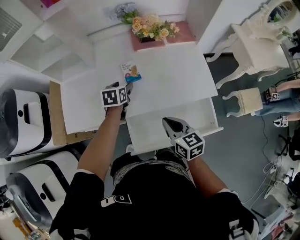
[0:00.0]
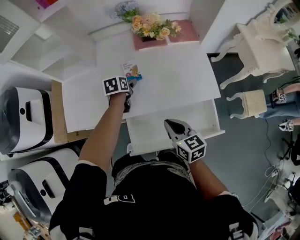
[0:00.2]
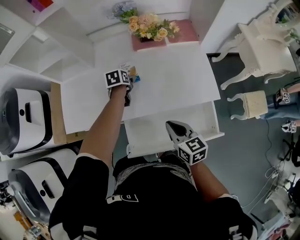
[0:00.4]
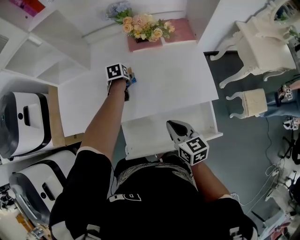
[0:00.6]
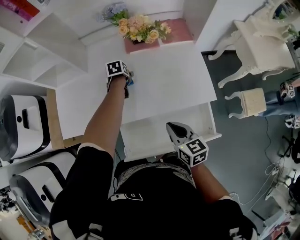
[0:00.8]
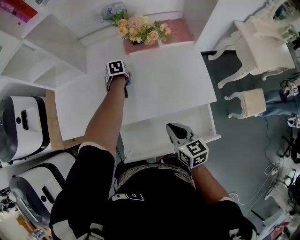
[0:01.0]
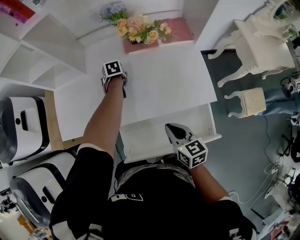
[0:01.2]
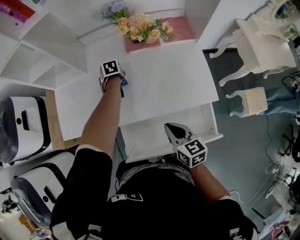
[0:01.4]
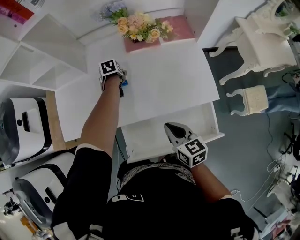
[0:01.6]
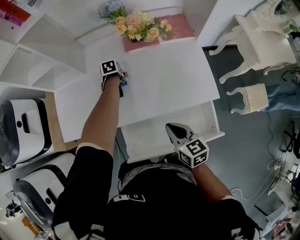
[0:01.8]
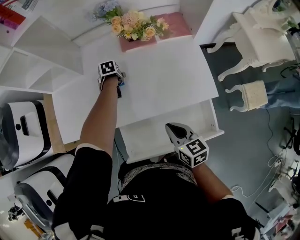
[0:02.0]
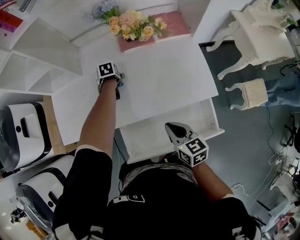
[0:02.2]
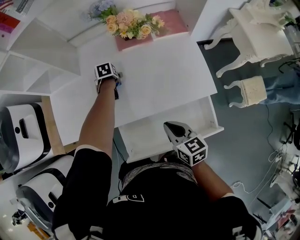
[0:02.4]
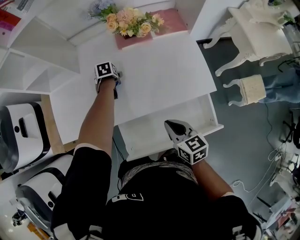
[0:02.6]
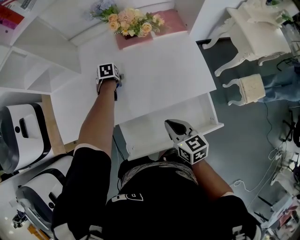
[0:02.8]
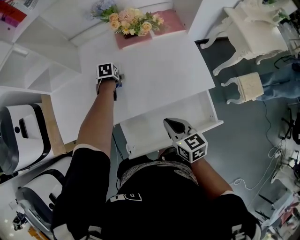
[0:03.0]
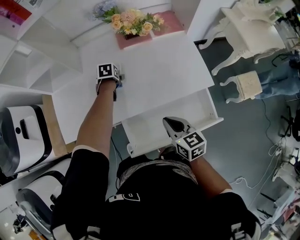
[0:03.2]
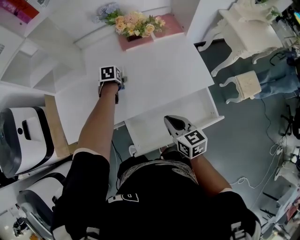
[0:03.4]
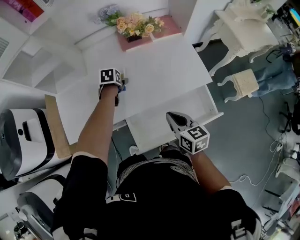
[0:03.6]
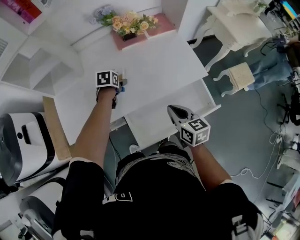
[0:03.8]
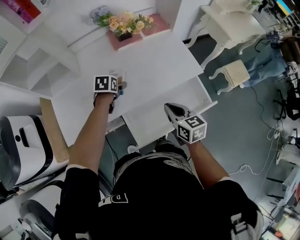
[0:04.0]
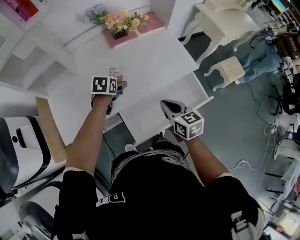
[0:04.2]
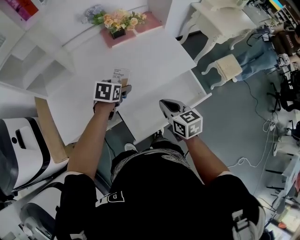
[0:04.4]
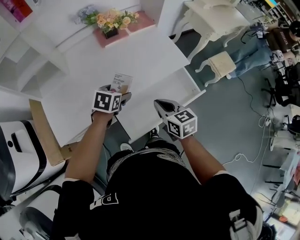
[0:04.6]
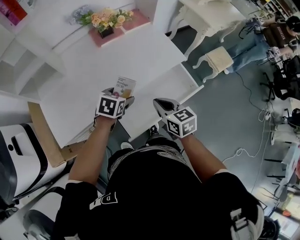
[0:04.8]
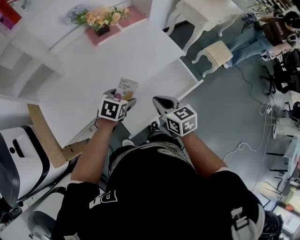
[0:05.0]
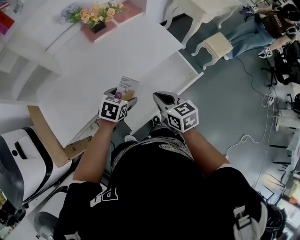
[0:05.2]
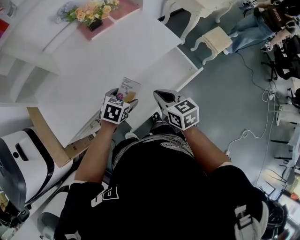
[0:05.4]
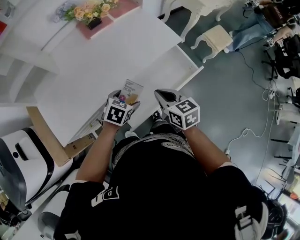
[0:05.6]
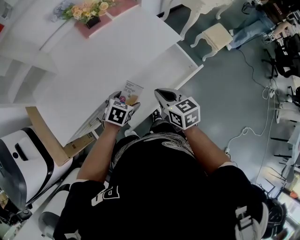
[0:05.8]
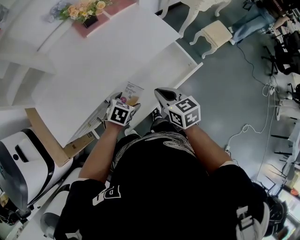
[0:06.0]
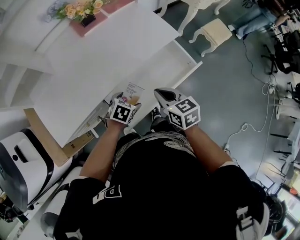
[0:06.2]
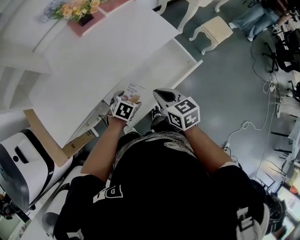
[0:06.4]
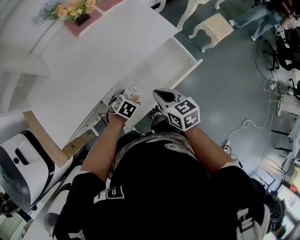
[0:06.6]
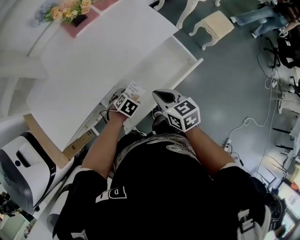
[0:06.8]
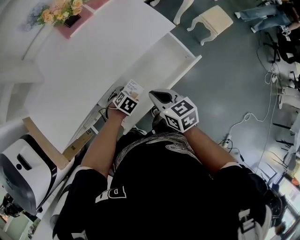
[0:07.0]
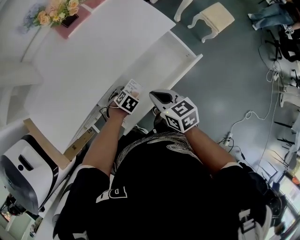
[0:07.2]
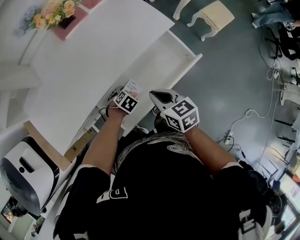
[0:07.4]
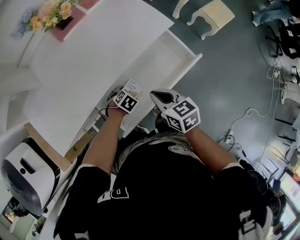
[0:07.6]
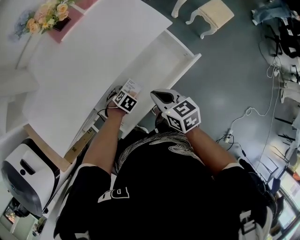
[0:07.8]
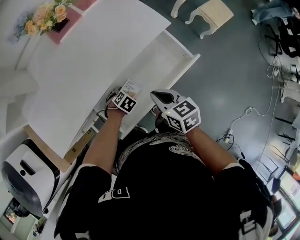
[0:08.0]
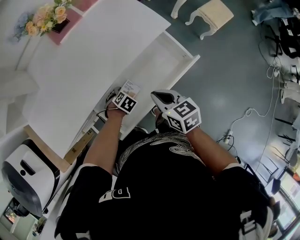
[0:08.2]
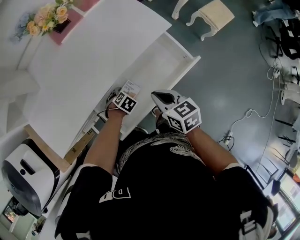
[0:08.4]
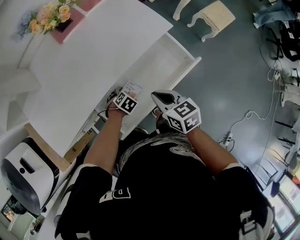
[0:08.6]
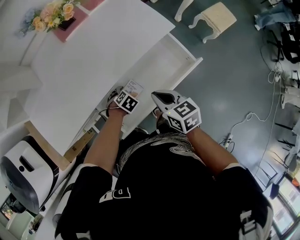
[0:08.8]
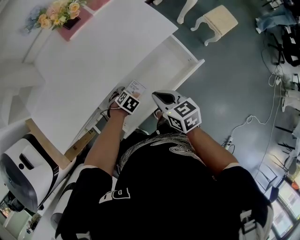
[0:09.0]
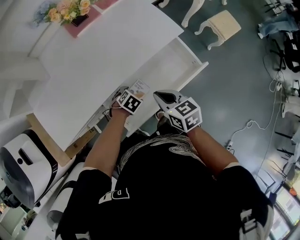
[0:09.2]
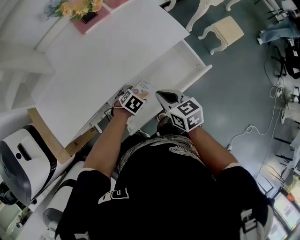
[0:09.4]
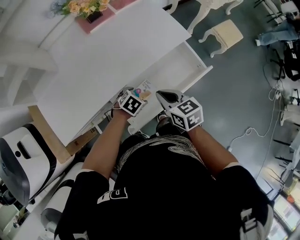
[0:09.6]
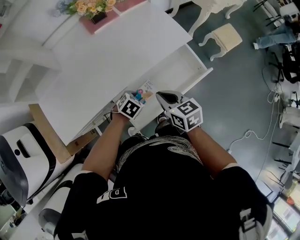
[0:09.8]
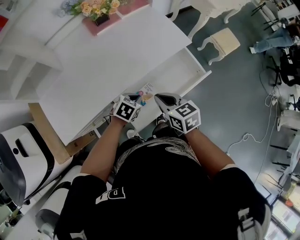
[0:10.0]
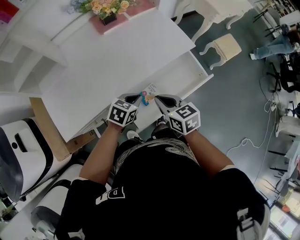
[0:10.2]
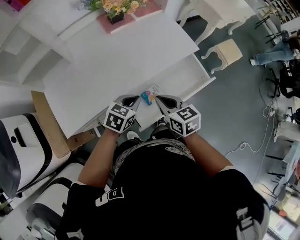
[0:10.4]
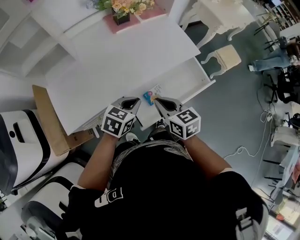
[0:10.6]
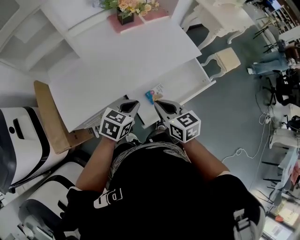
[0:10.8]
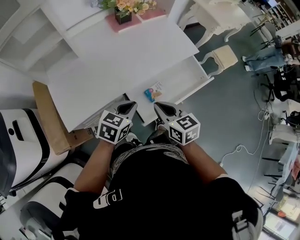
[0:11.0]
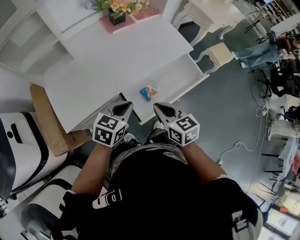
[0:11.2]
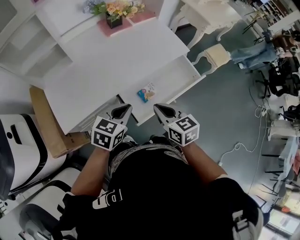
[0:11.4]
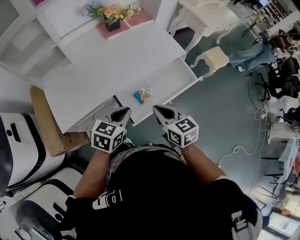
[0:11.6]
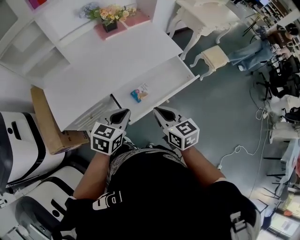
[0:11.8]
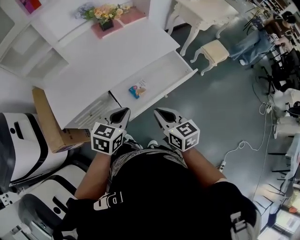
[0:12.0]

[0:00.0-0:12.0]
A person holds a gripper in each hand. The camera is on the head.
0:00.0 to 0:01.6: The right gripper moves about 5 cm. The left gripper goes roughly 15 cm forward and downward, and rotates roughly 30 degrees.
0:01.6 to 0:03.0: There are only small adjustments of the grippers.
0:03.0 to 0:04.4: The left gripper travels backward, upward and to the right by some 20 cm, and rotates about 40 degrees. The right gripper travels backward by about 5 cm.
0:04.4 to 0:06.0: The left gripper goes about 20 cm backward, to the right and downward, and swivels approximately 20 degrees. Meanwhile the right gripper shifts by roughly 5 cm.
0:06.0 to 0:07.6: The left gripper moves downward, roughly 15 cm, and rotates approximately 30 degrees. The right gripper shifts some 5 cm downward.
0:07.6 to 0:09.0: The grippers make only small movements.
0:09.0 to 0:10.4: The right gripper shifts by about 15 cm; the left gripper is displaced upward by some 25 cm, tips its fingers upward by approximately 40 degrees, and closes.
0:10.4 to 0:12.0: The right gripper is displaced backward and to the right by about 15 cm; the left gripper moves backward and upward, roughly 20 cm.

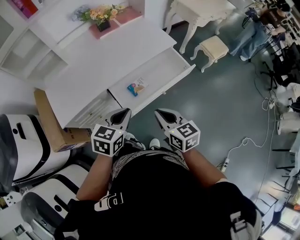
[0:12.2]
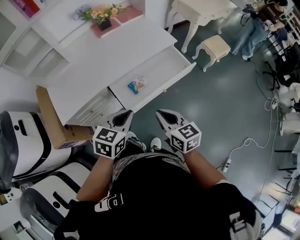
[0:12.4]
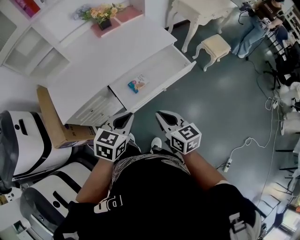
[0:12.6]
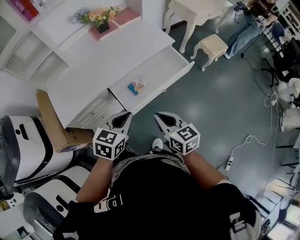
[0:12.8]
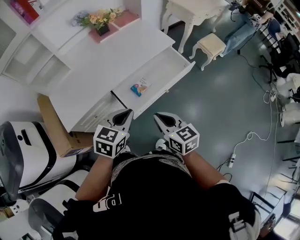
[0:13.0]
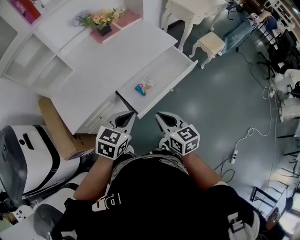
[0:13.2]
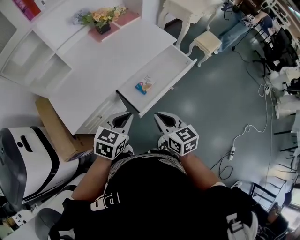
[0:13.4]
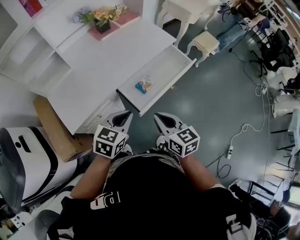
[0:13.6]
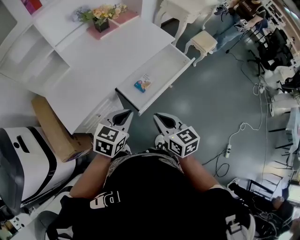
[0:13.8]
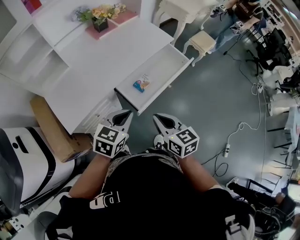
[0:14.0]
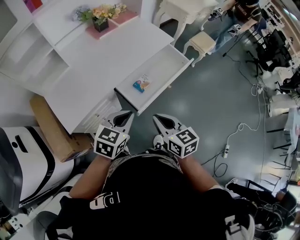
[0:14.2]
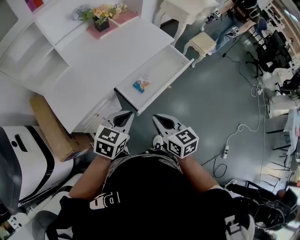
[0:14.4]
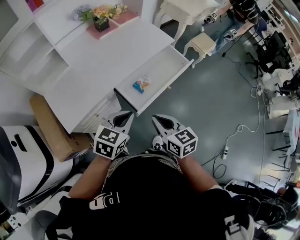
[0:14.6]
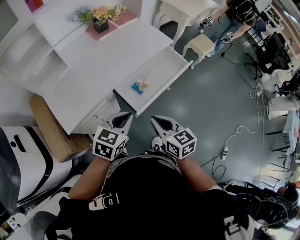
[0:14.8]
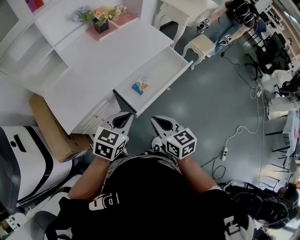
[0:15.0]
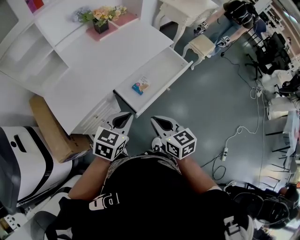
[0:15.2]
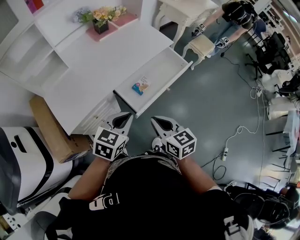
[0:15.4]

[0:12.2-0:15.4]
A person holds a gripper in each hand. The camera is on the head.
0:12.2 to 0:13.8: The left gripper travels to the left by approximately 10 cm; the right gripper shifts roughly 10 cm to the left and backward.
0:13.8 to 0:15.4: The grippers move only a little.

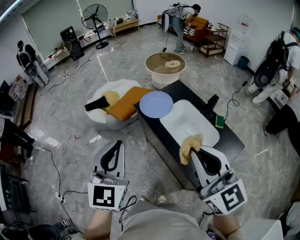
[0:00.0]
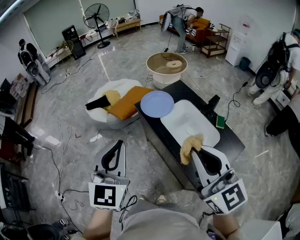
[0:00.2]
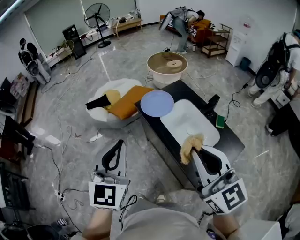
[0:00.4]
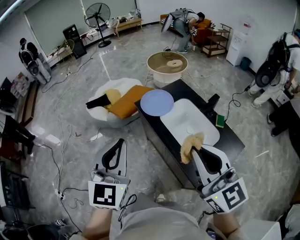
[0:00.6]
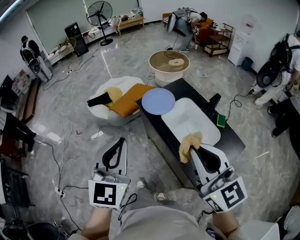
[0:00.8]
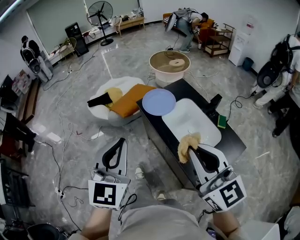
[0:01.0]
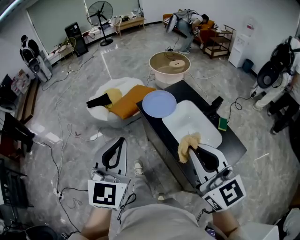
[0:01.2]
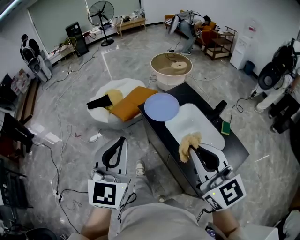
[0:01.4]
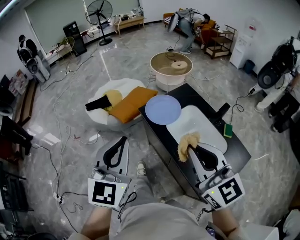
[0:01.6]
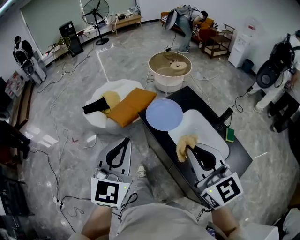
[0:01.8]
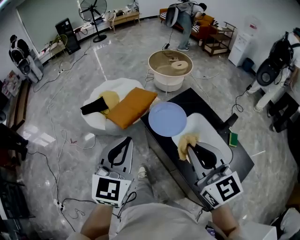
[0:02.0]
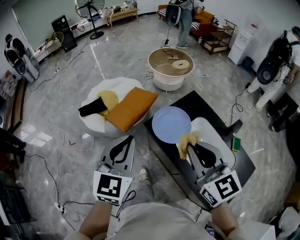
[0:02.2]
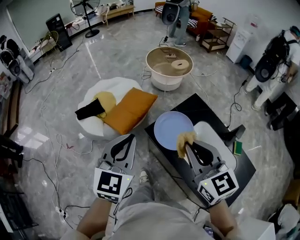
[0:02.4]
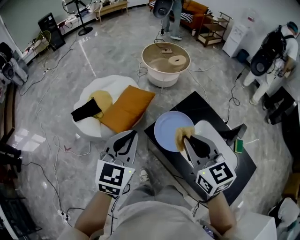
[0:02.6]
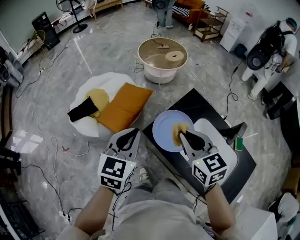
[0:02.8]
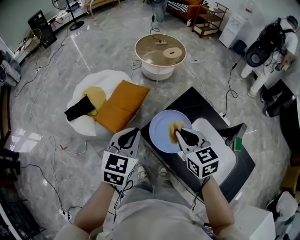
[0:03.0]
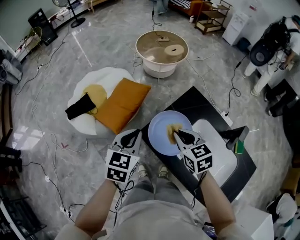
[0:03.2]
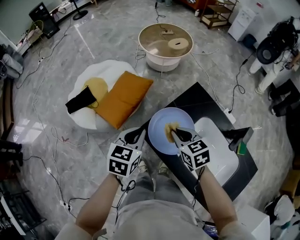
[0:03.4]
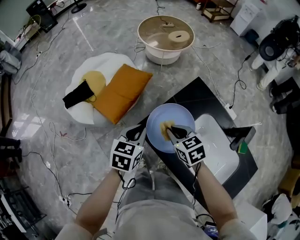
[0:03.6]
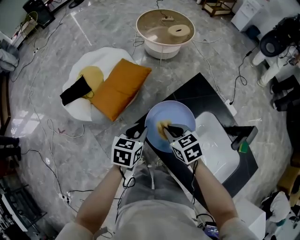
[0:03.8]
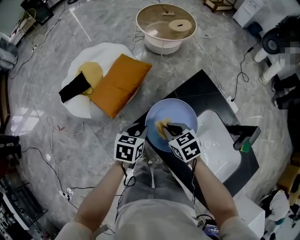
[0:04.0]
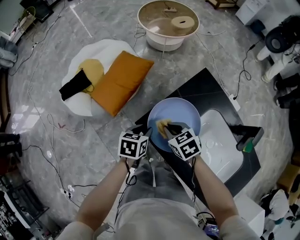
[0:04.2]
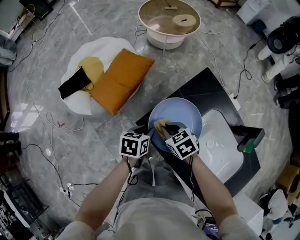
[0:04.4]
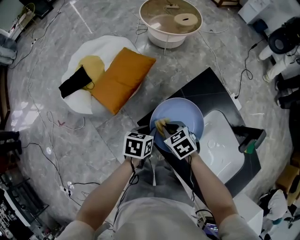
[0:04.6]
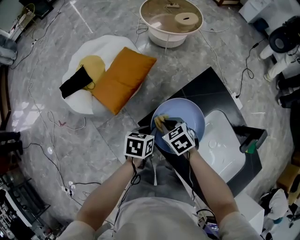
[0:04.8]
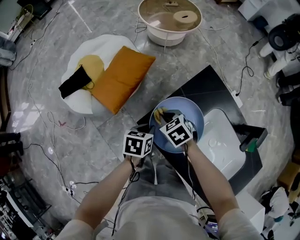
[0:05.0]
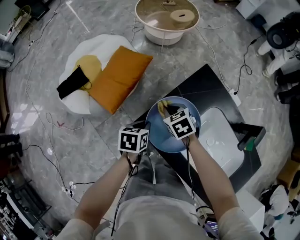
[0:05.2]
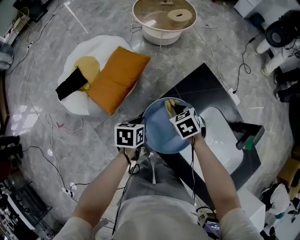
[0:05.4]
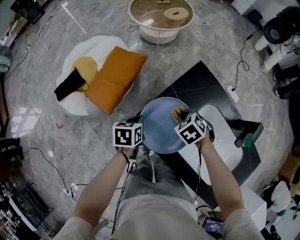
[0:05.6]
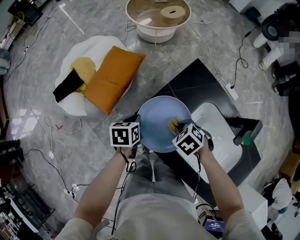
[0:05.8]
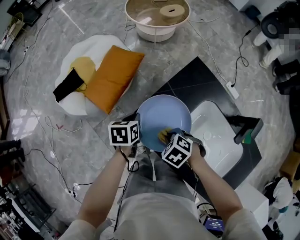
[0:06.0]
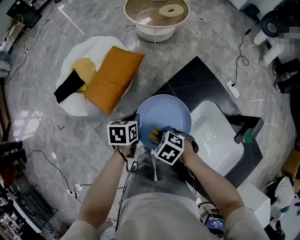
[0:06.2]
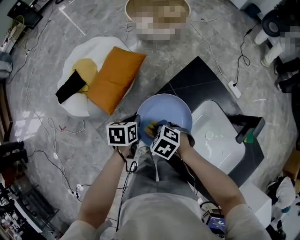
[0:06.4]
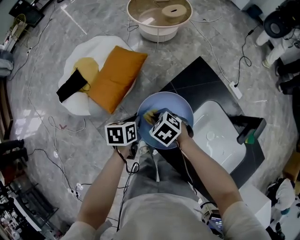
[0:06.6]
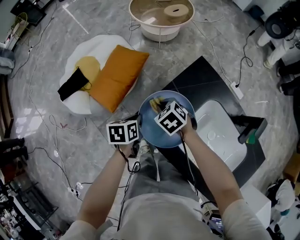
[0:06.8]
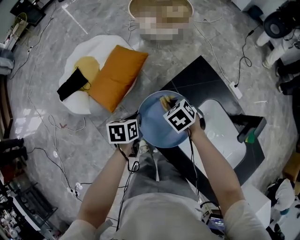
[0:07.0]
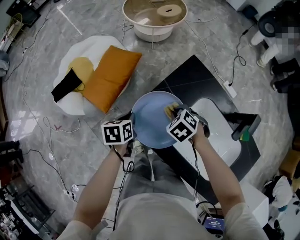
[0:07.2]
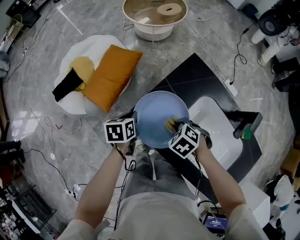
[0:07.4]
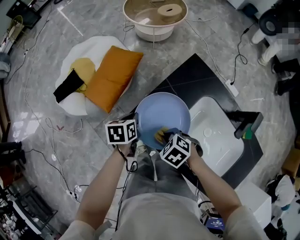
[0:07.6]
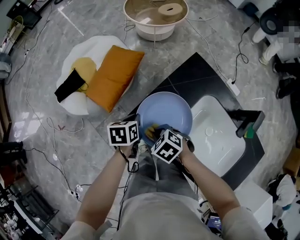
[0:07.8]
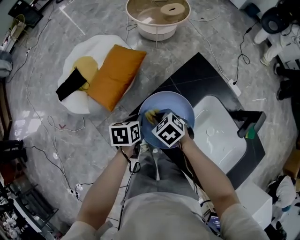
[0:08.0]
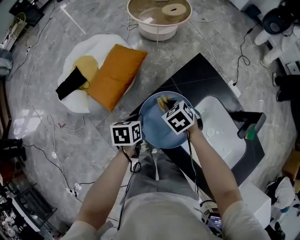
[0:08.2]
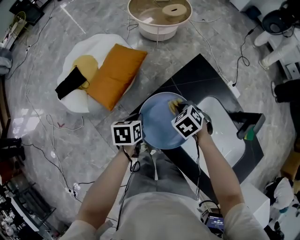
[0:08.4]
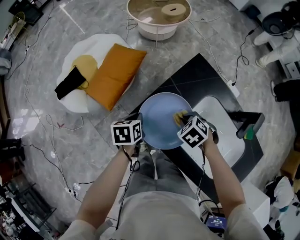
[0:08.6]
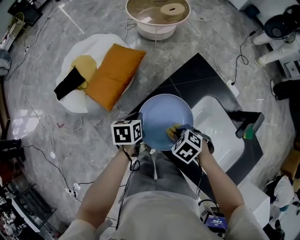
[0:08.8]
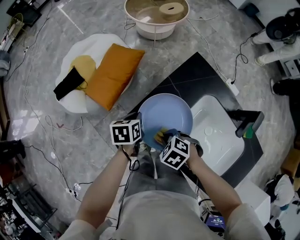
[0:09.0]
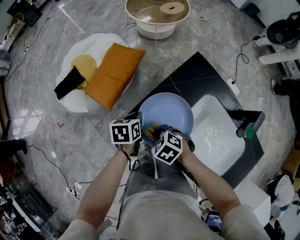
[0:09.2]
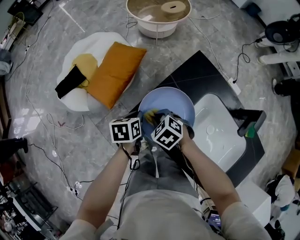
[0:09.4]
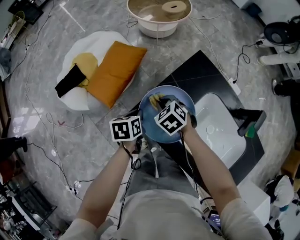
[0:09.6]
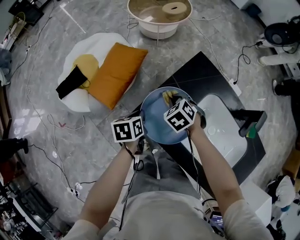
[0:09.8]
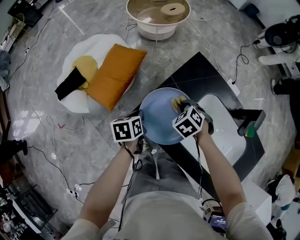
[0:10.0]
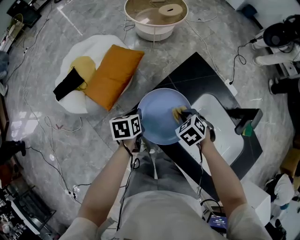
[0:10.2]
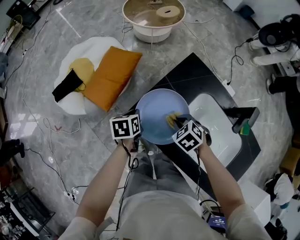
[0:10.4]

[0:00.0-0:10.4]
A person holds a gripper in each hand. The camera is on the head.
0:00.0 to 0:01.4: The right gripper heads forward, covering roughly 5 cm.
0:01.4 to 0:03.0: The two grippers go roughly 40 cm forward and downward. The right gripper tips its fingers downward by roughly 30 degrees; the left gripper swivels some 30 degrees.
0:03.0 to 0:04.4: The two grippers go some 25 cm downward. The left gripper rotates about 40 degrees, and opens; the right gripper rotates roughly 30 degrees.
0:04.4 to 0:06.0: The right gripper ends up some 10 cm from where it was, and changes its angle by roughly 30 degrees, while the left gripper closes up.
0:07.4 to 0:09.0: The right gripper changes place by about 10 cm.
